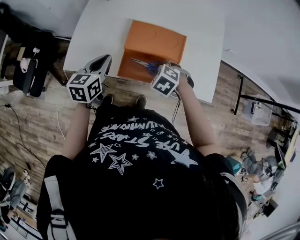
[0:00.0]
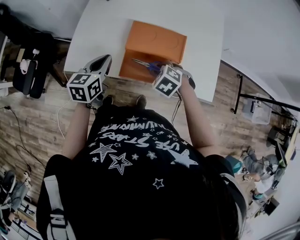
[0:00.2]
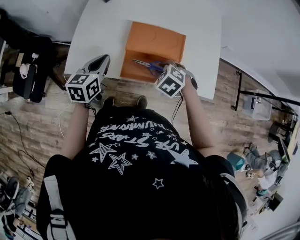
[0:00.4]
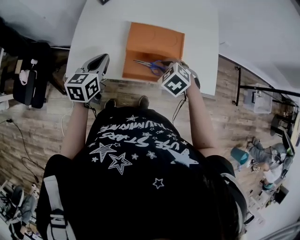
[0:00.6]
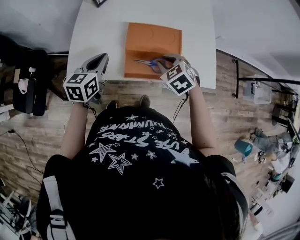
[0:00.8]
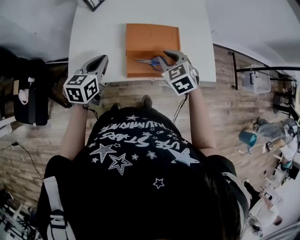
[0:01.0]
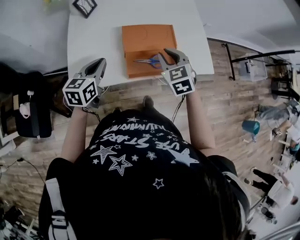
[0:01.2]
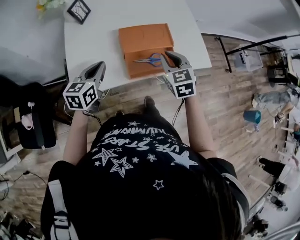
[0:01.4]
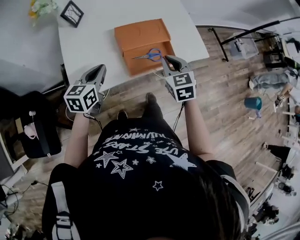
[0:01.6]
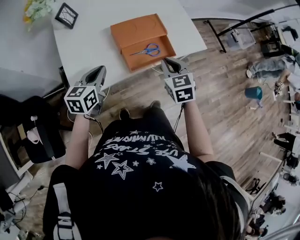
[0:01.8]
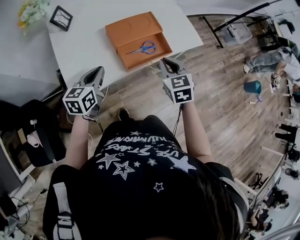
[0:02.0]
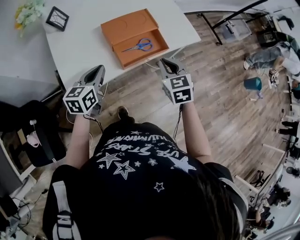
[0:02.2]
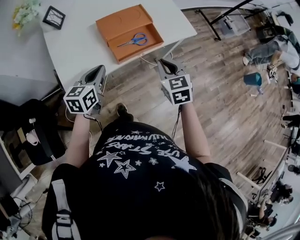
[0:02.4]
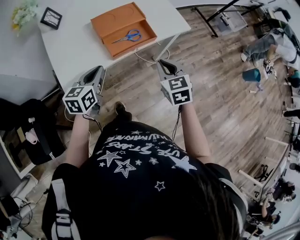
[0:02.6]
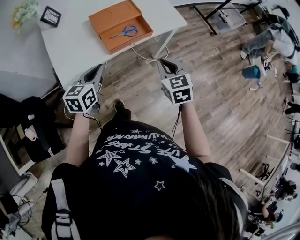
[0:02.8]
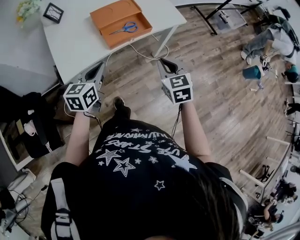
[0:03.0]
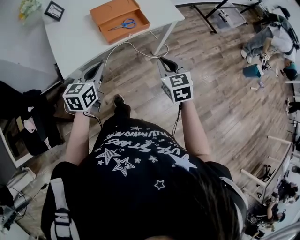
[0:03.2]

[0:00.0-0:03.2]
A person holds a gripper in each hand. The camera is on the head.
0:00.0 to 0:01.6: The right gripper moves upward, about 15 cm, and tilts its fingers roughly 40 degrees upward. The left gripper changes place by some 10 cm, and swivels approximately 30 degrees.
0:01.6 to 0:03.2: The two grippers go roughly 25 cm backward and to the right.

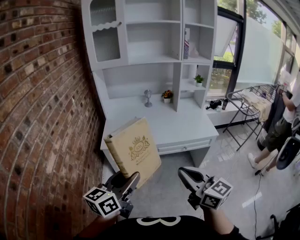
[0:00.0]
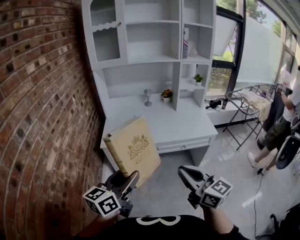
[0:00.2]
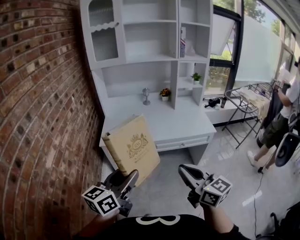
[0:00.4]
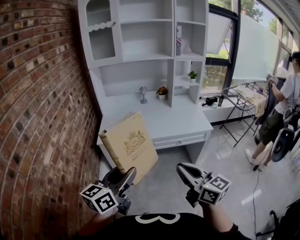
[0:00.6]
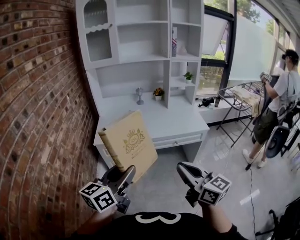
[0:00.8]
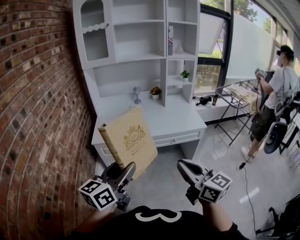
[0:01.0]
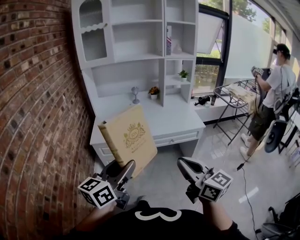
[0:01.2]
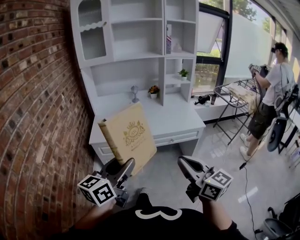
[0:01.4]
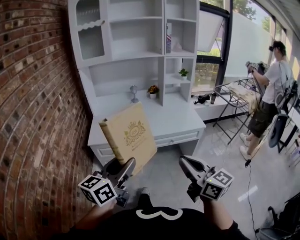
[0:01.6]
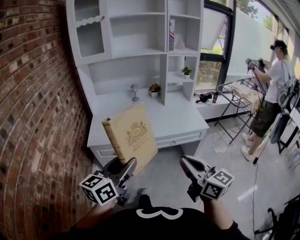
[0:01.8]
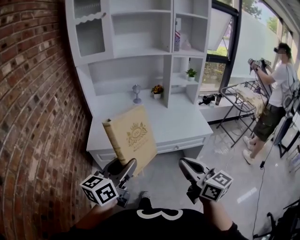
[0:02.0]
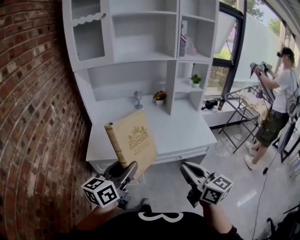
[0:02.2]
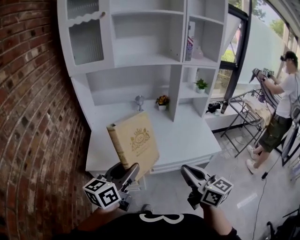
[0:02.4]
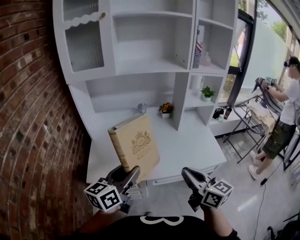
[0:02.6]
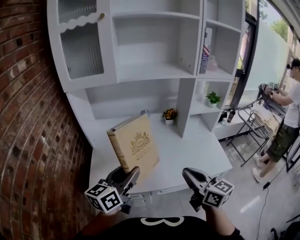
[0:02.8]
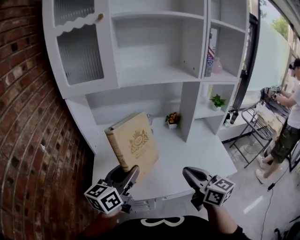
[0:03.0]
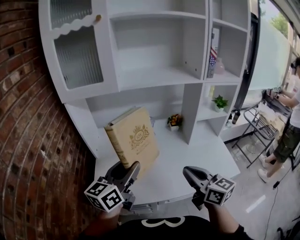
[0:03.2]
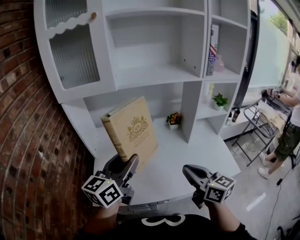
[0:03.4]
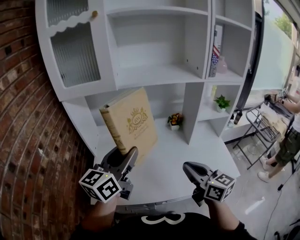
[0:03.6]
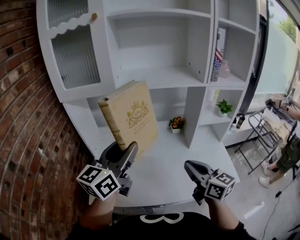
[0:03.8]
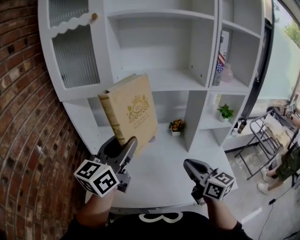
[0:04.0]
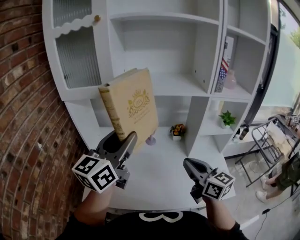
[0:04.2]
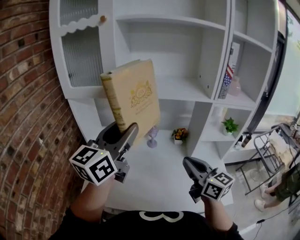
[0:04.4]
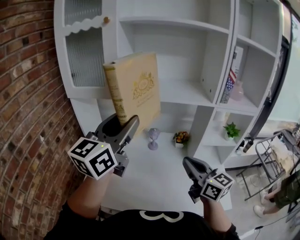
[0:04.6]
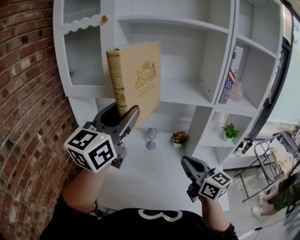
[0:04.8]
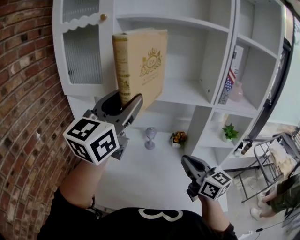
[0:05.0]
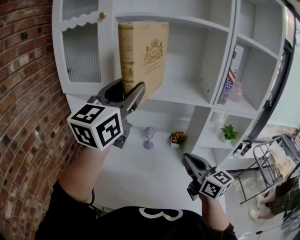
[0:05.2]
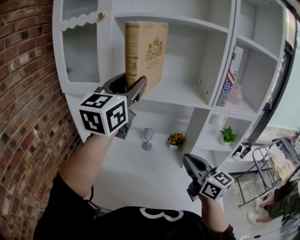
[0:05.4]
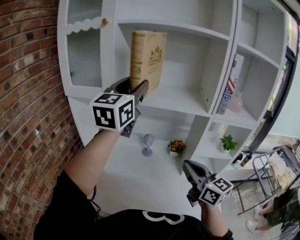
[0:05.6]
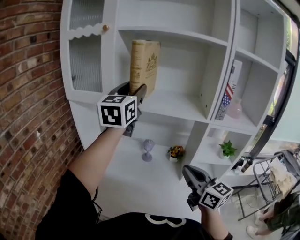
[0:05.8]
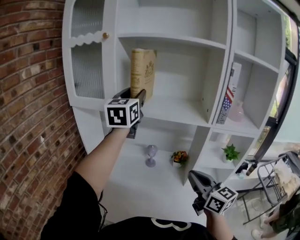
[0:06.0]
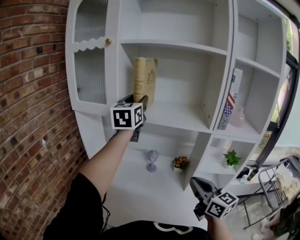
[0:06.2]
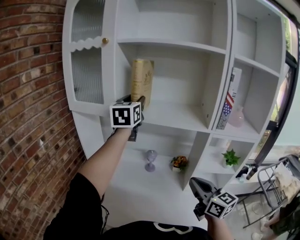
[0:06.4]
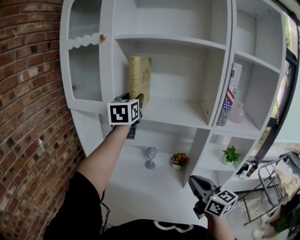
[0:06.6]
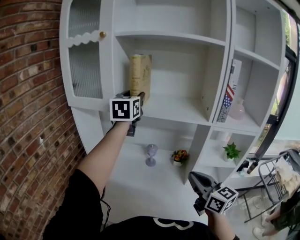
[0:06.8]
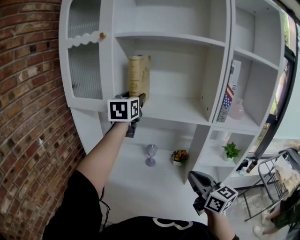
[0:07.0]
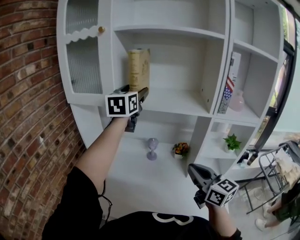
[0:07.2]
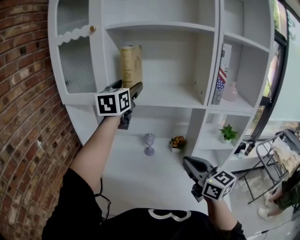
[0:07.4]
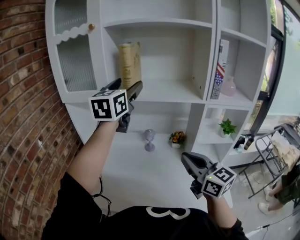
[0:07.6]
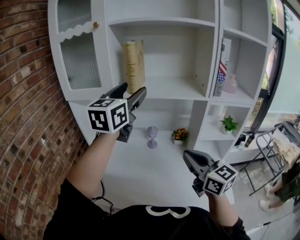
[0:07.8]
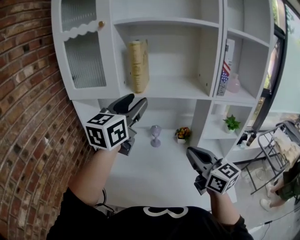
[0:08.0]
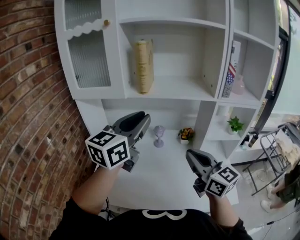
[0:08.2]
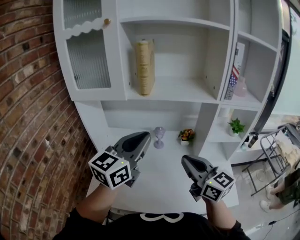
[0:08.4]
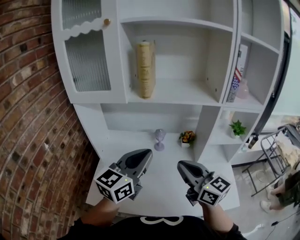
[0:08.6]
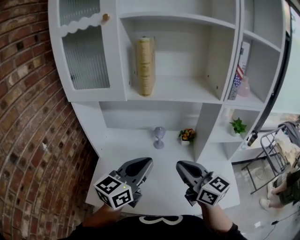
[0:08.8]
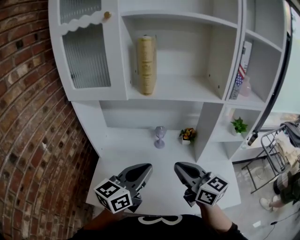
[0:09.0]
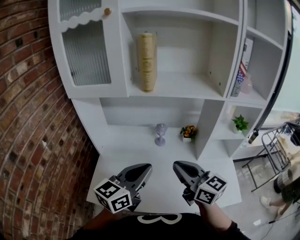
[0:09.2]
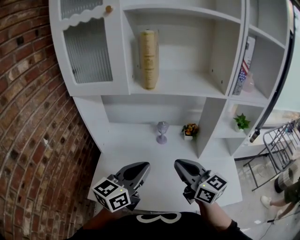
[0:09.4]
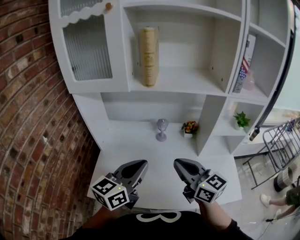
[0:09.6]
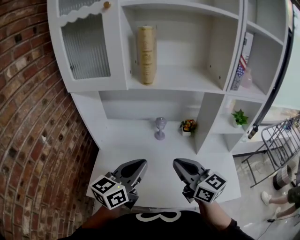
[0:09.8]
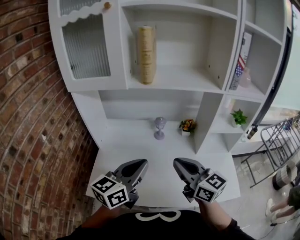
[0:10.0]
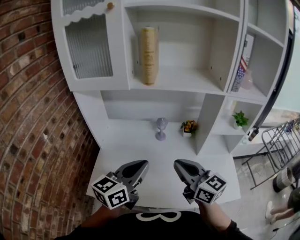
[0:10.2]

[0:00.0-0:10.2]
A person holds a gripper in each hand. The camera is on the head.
0:00.0 to 0:01.4: Both grippers move to the right, roughly 5 cm.
0:01.4 to 0:03.0: The pair of grippers is taken forward, roughly 50 cm.
0:03.0 to 0:04.4: The left gripper travels upward and forward by about 20 cm, and swivels about 20 degrees. The right gripper goes approximately 15 cm forward, to the right and upward.
0:04.4 to 0:05.8: The left gripper goes approximately 20 cm forward and upward, and changes its angle by some 20 degrees. Meanwhile the right gripper is displaced to the right by approximately 5 cm.
0:05.8 to 0:07.2: The left gripper moves forward, roughly 5 cm, and opens up.
0:07.2 to 0:08.8: The right gripper heads to the left, covering about 10 cm, while the left gripper travels backward and downward by roughly 30 cm, turns by roughly 30 degrees, and closes up.
0:08.8 to 0:10.2: The left gripper moves approximately 5 cm.

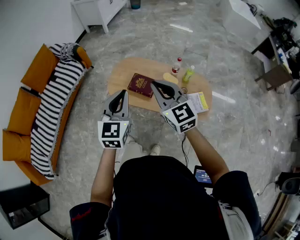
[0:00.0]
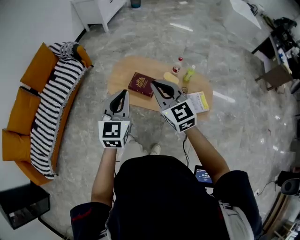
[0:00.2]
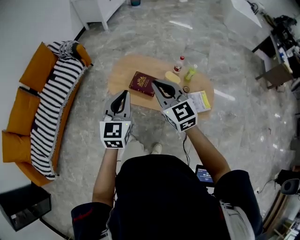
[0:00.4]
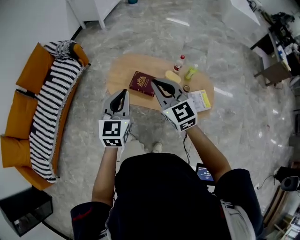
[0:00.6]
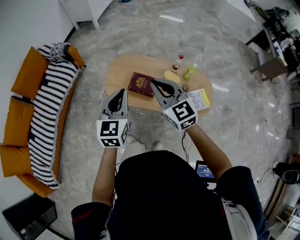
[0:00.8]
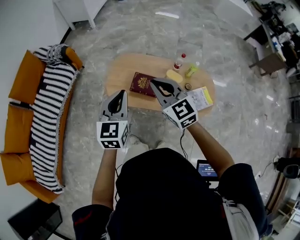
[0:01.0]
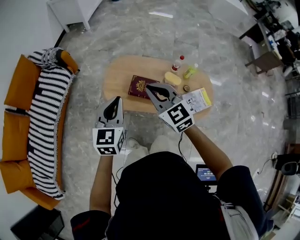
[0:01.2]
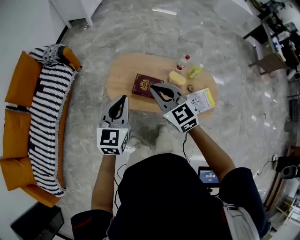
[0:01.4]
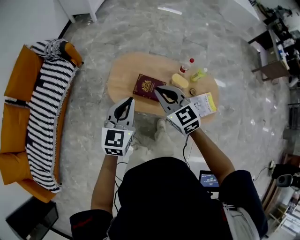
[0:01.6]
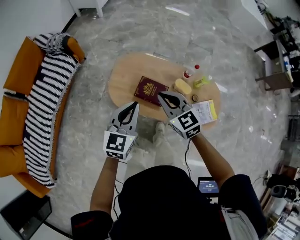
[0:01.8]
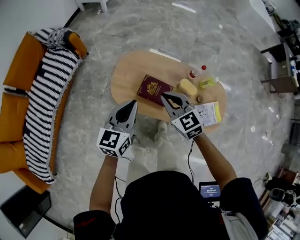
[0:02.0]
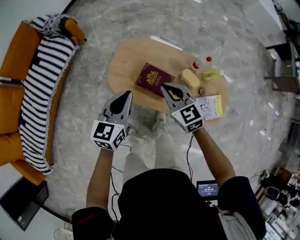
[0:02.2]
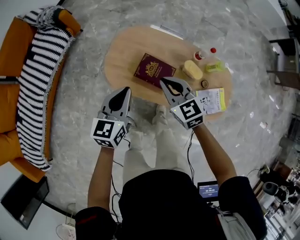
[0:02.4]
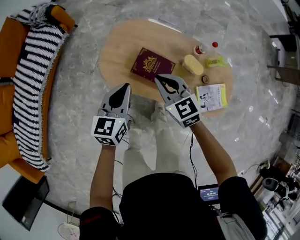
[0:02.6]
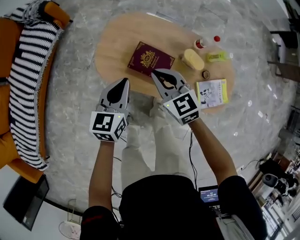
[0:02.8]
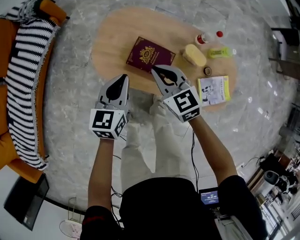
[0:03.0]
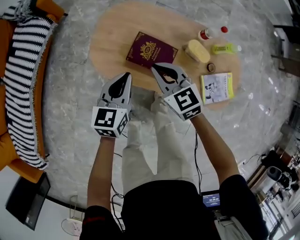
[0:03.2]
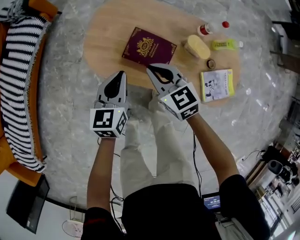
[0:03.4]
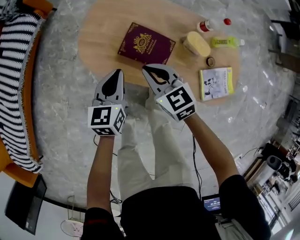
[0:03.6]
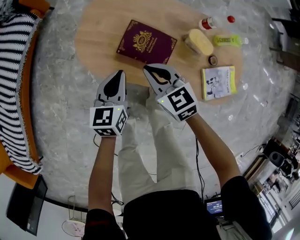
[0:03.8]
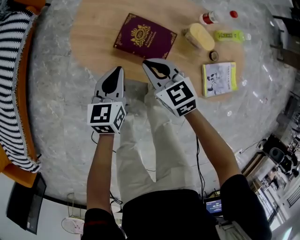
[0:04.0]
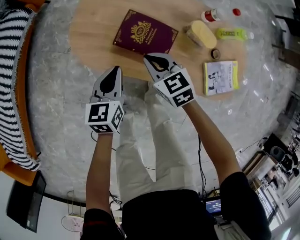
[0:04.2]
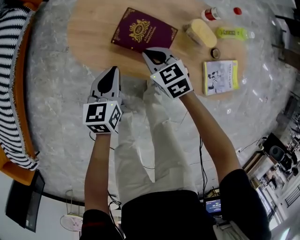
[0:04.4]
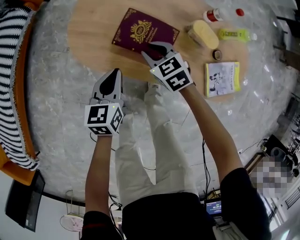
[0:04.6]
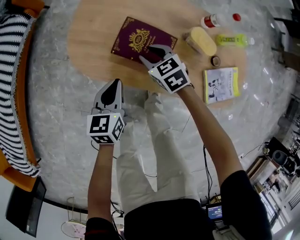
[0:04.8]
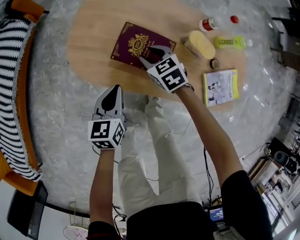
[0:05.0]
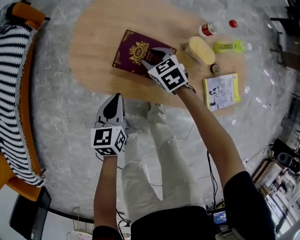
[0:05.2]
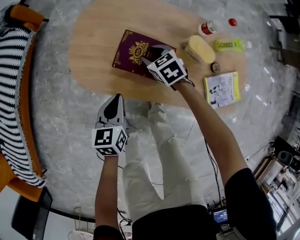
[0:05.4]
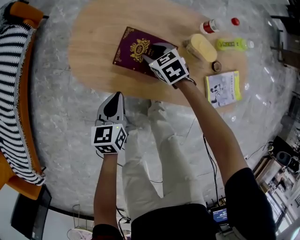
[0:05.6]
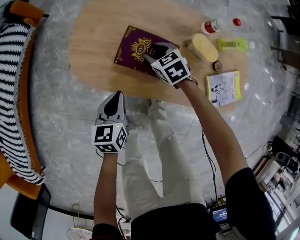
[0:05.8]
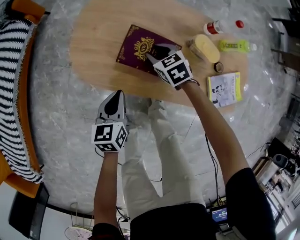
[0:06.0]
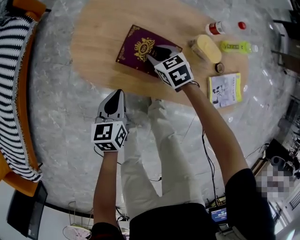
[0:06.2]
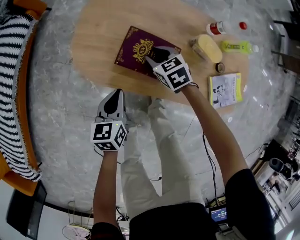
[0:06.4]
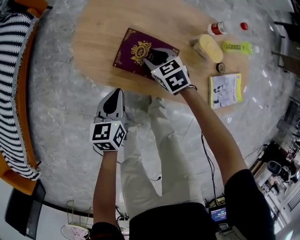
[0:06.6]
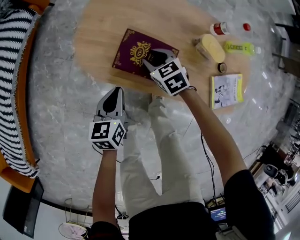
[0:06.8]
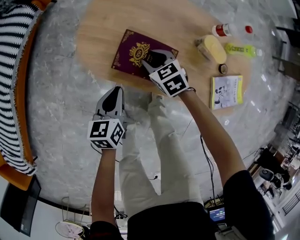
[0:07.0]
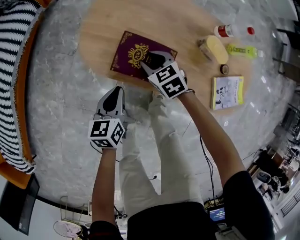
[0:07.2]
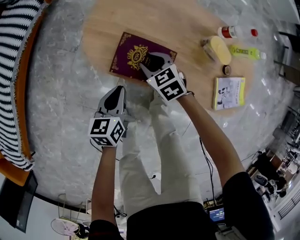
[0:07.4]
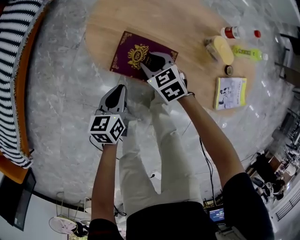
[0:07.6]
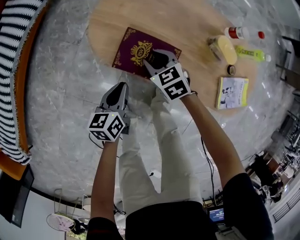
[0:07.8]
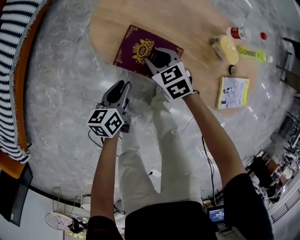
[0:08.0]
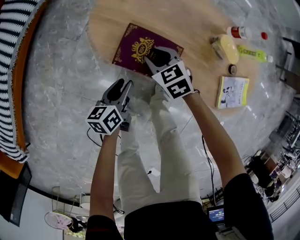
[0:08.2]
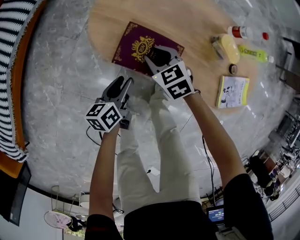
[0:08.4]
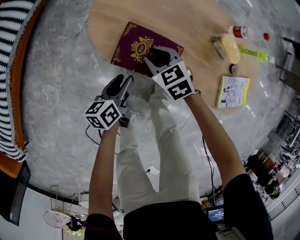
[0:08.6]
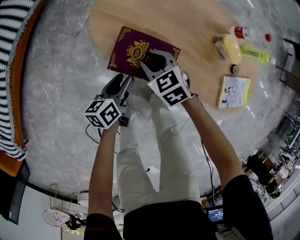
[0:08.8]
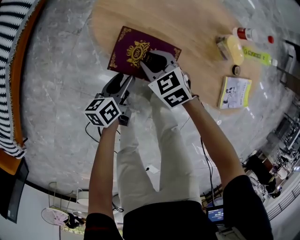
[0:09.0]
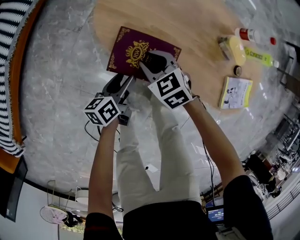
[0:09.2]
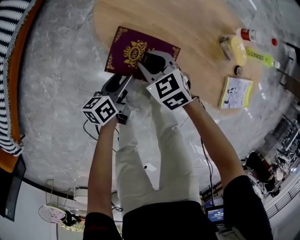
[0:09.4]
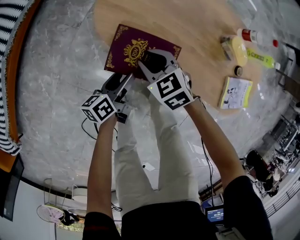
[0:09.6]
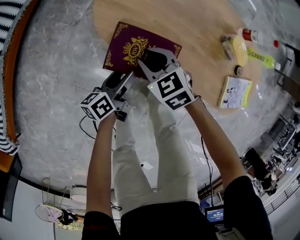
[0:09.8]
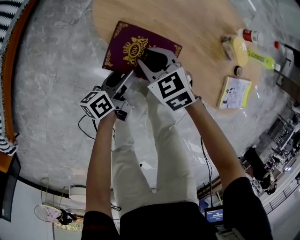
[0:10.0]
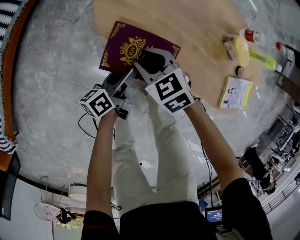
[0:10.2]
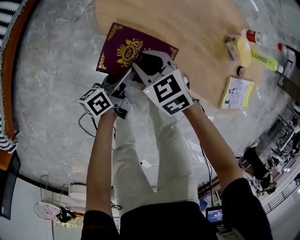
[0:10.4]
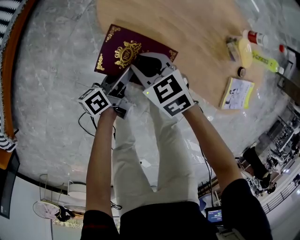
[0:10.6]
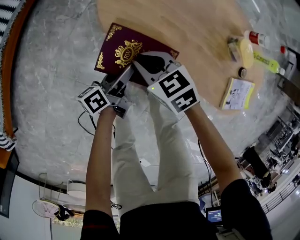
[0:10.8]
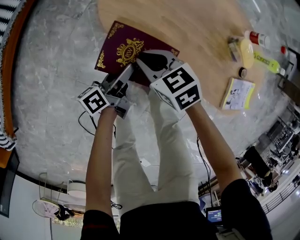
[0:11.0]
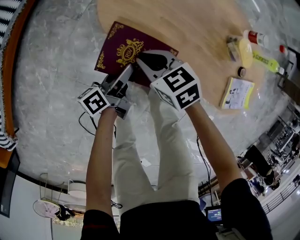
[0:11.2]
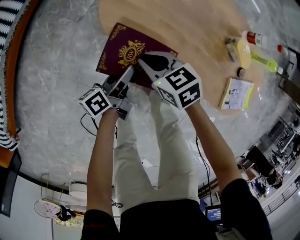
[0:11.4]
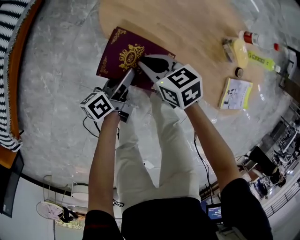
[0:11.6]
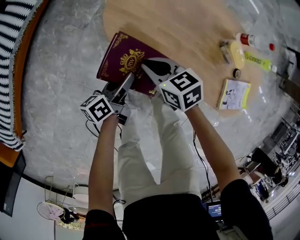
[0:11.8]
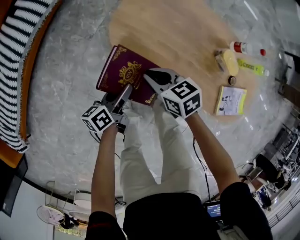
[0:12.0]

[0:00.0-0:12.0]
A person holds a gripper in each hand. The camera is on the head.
0:00.0 to 0:01.6: Both grippers move forward, downward and to the left, some 20 cm.
0:01.6 to 0:03.0: Both grippers travel together downward, about 25 cm.
0:03.0 to 0:04.4: The grippers both shift downward by approximately 20 cm.
0:04.4 to 0:06.0: The right gripper goes about 10 cm forward and downward, and opens.
0:06.0 to 0:07.6: The right gripper travels to the left and backward by about 15 cm. The left gripper heads to the left, covering approximately 5 cm.
0:07.6 to 0:09.0: The right gripper moves roughly 5 cm. The left gripper heads downward, covering about 5 cm, and opens up.
0:09.0 to 0:10.4: The grippers stay close to where they were, moving slightly.
0:10.4 to 0:12.0: The right gripper travels upward by roughly 10 cm, and turns by about 20 degrees. Meanwhile the left gripper shifts about 10 cm upward and to the left.
